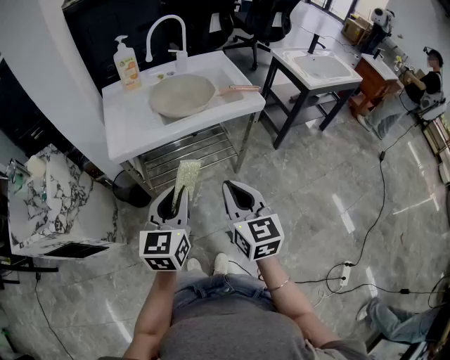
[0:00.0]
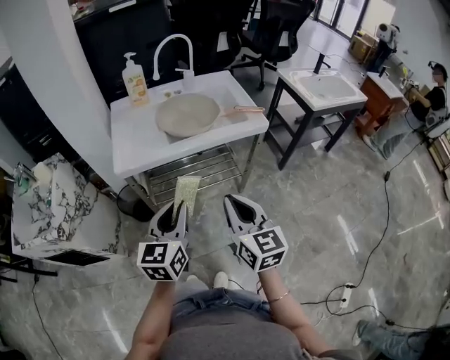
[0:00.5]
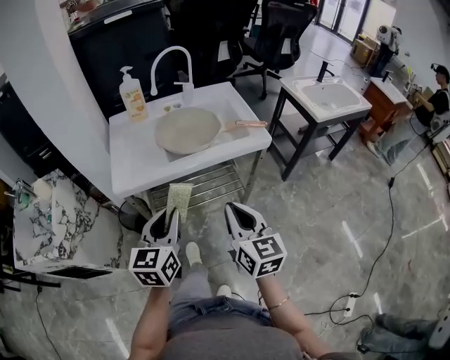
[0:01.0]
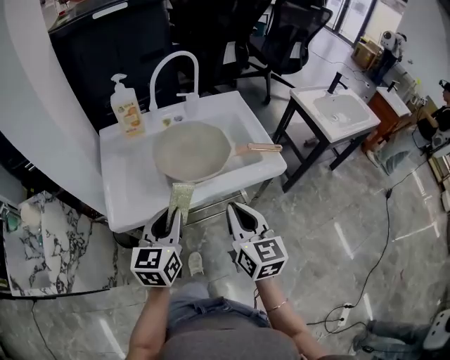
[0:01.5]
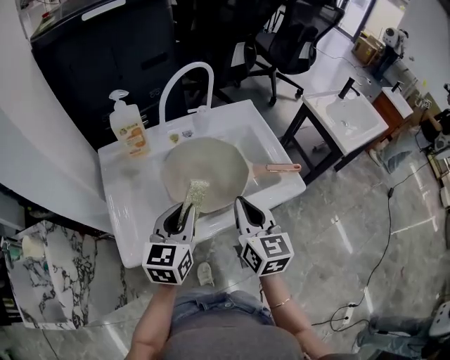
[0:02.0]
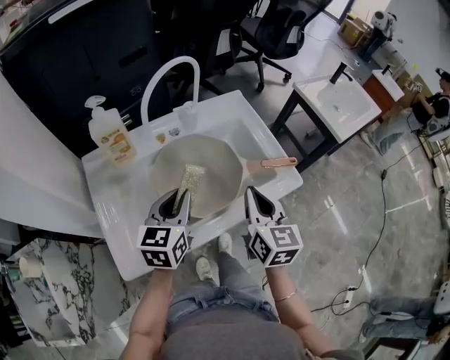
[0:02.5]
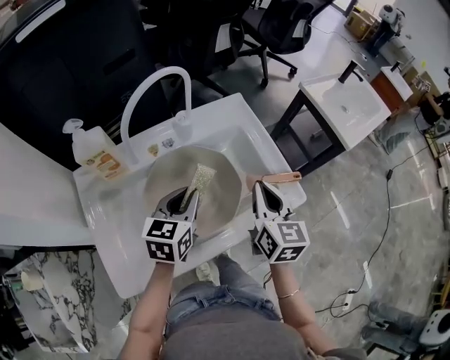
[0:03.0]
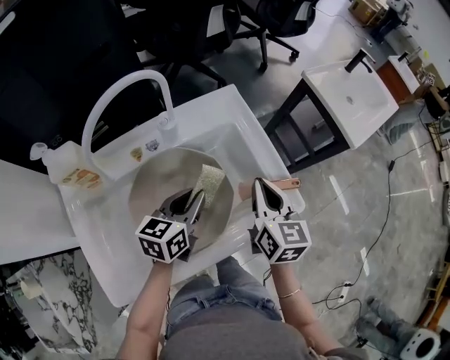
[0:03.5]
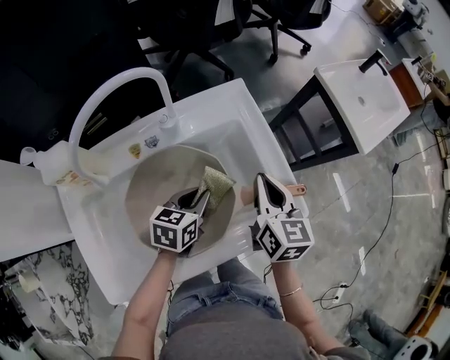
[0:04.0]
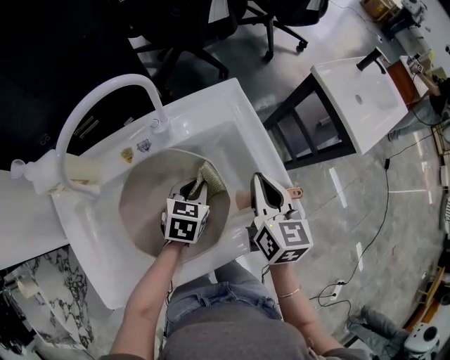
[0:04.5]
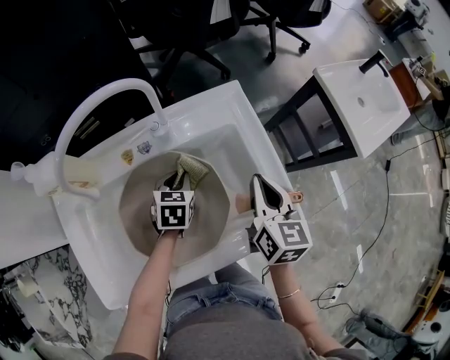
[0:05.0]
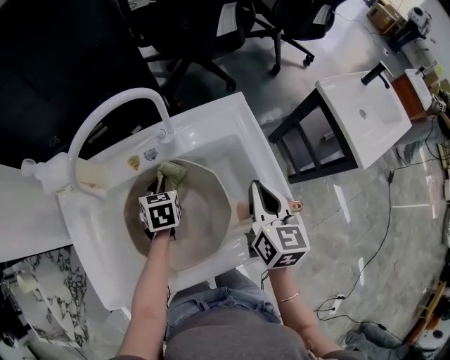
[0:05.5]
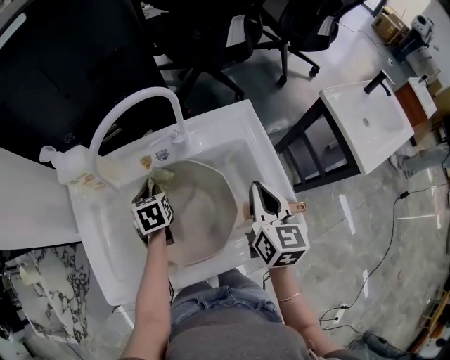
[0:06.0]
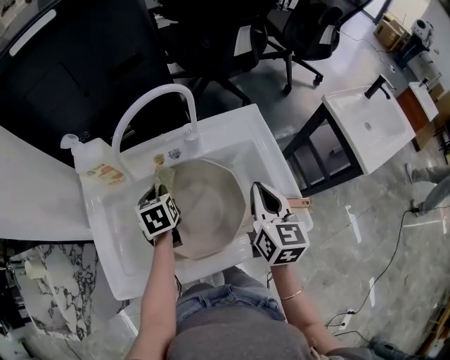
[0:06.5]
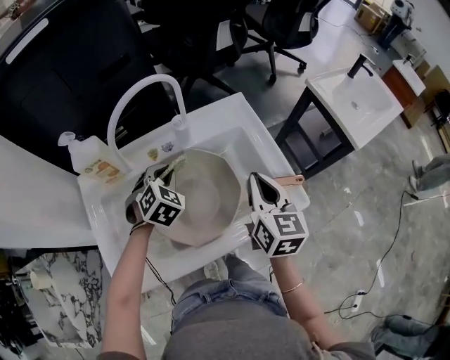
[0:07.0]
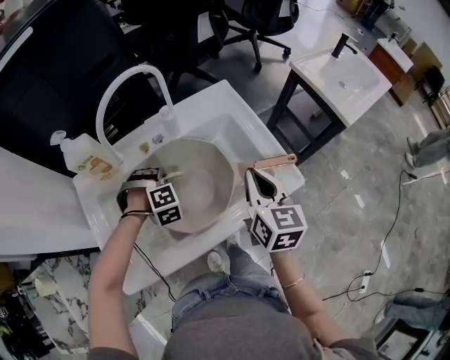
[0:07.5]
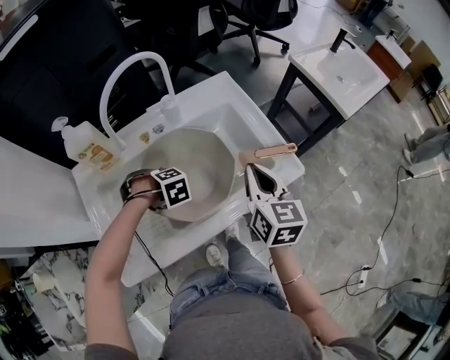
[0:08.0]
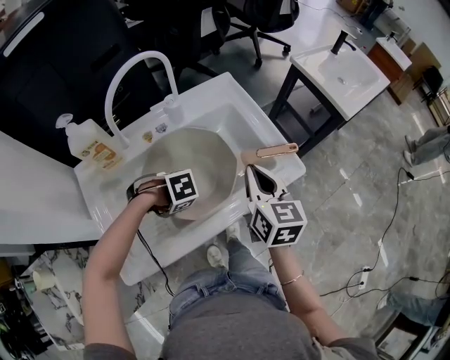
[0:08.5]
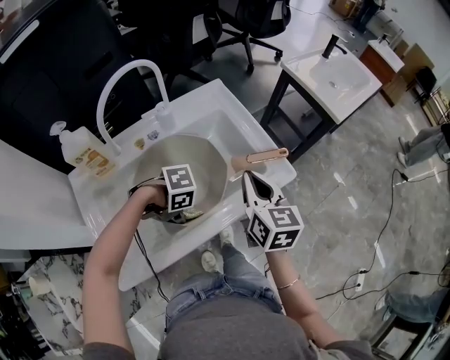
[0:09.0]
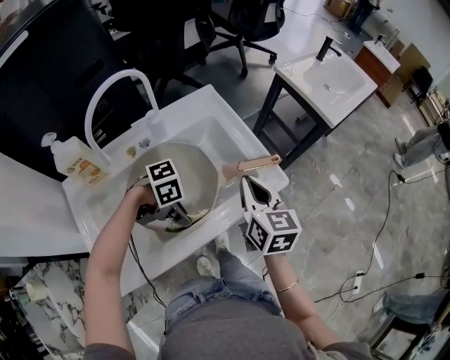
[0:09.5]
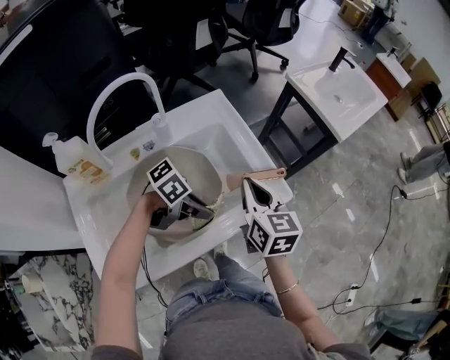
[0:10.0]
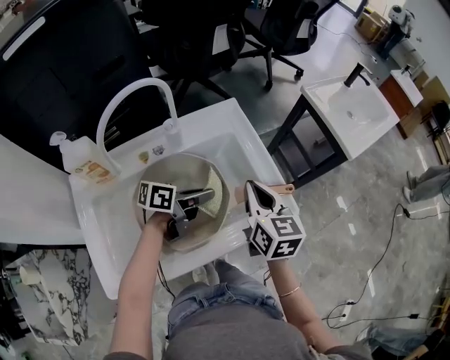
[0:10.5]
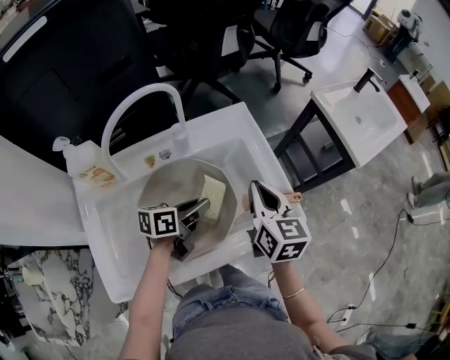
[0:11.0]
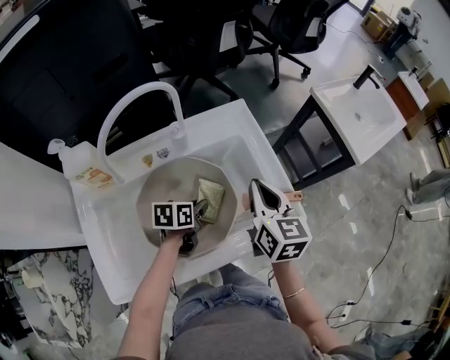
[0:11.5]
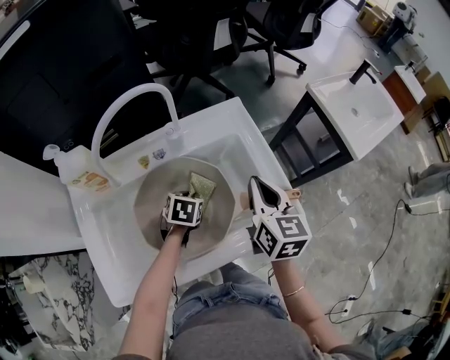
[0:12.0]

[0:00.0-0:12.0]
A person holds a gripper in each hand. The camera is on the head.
0:00.0 to 0:02.0: The grippers both shift forward by roughly 35 cm.
0:02.0 to 0:04.0: The left gripper shifts about 25 cm forward, downward and to the right, and rotates some 30 degrees, while the right gripper is displaced forward and to the right by about 25 cm.
0:04.0 to 0:06.0: The left gripper shifts by roughly 20 cm, and changes its angle by approximately 50 degrees.
0:06.0 to 0:08.0: The left gripper moves approximately 10 cm upward and comes back, and twists approximately 90 degrees clockwise, seen from behind. The right gripper moves about 10 cm.
0:08.0 to 0:10.0: The left gripper changes place by roughly 20 cm, and points its fingers approximately 50 degrees further upward.
0:10.0 to 0:12.0: The right gripper moves approximately 5 cm. The left gripper shifts by some 20 cm, and angles its fingers downward, by roughly 30 degrees.

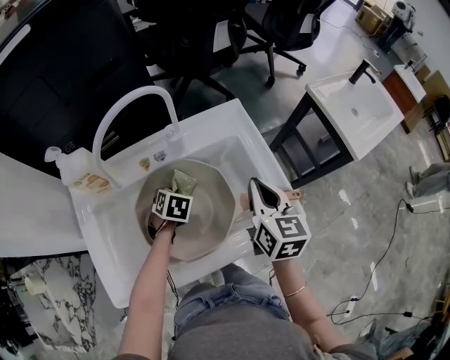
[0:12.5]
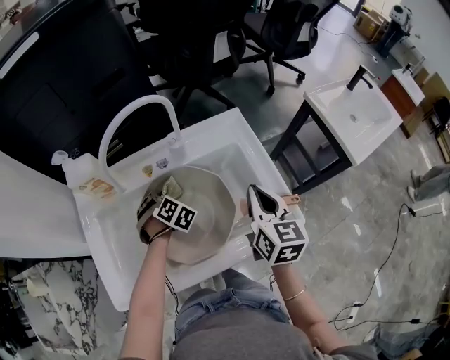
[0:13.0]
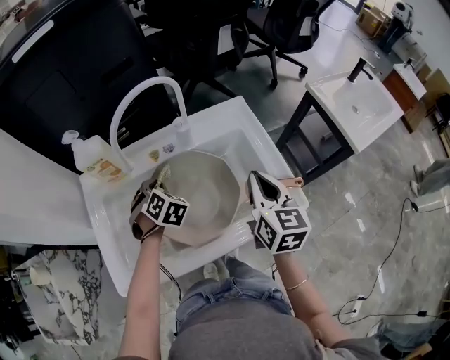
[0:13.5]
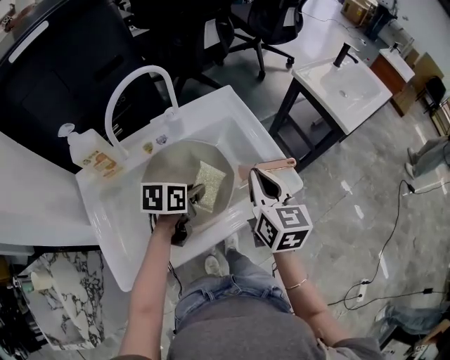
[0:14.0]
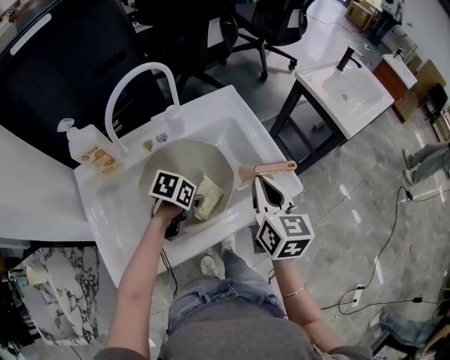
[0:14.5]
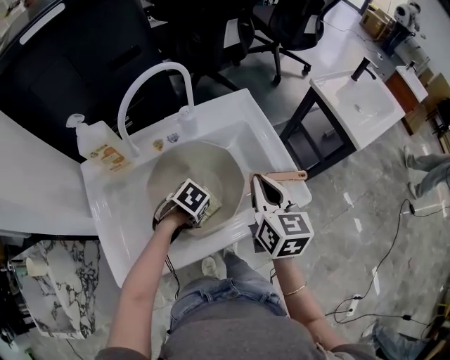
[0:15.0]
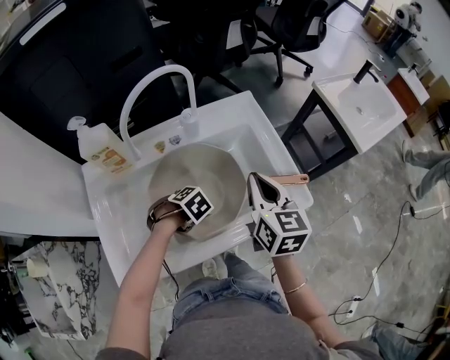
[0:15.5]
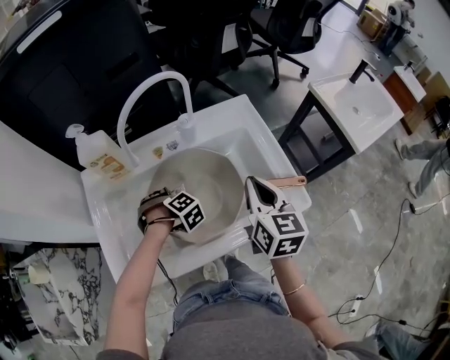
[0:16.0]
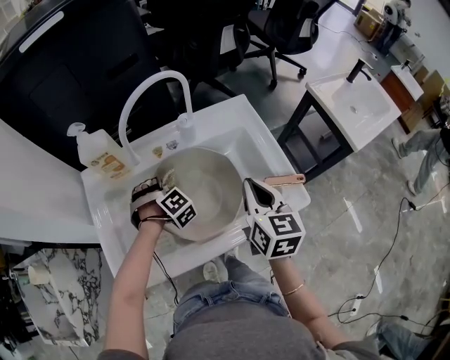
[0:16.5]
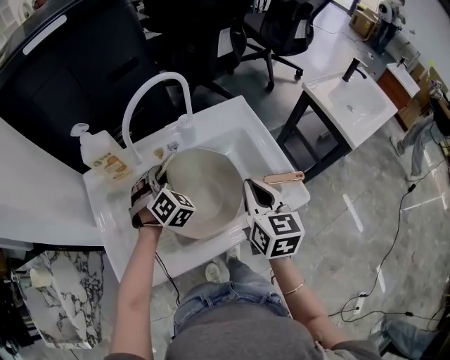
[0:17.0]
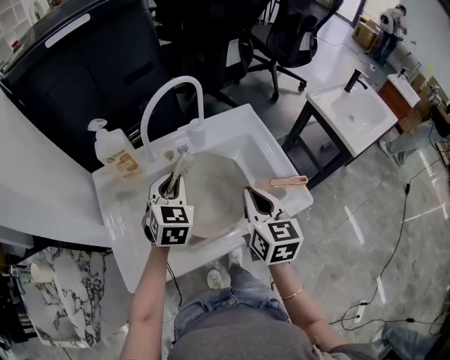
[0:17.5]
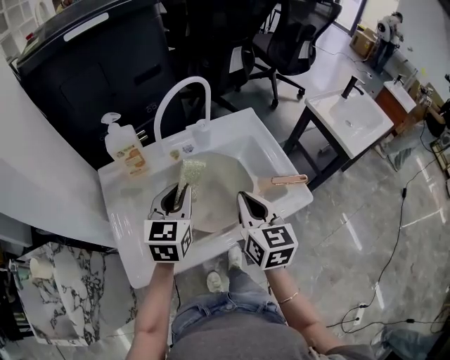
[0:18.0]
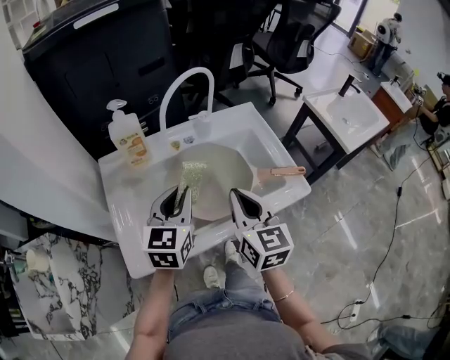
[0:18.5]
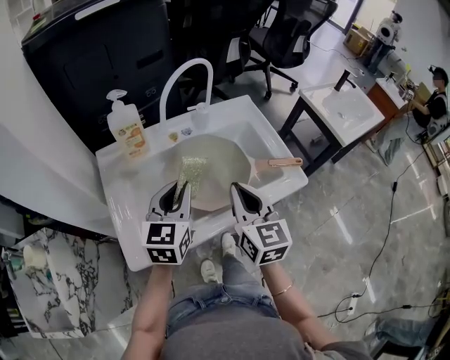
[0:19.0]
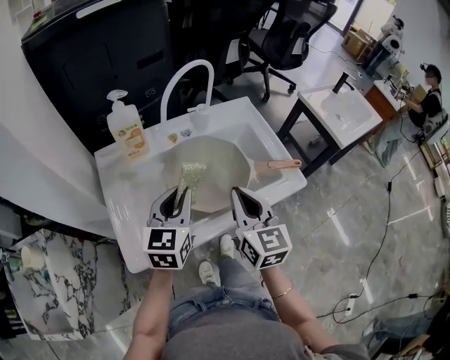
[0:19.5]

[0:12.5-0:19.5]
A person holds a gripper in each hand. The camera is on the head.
0:12.5 to 0:14.5: The right gripper ends up some 10 cm from where it was. The left gripper changes place by some 15 cm, and turns by roughly 40 degrees.
0:14.5 to 0:16.0: The right gripper moves about 5 cm. Meanwhile the left gripper moves about 15 cm, and turns by approximately 70 degrees.
0:16.0 to 0:17.5: The right gripper ends up about 5 cm from where it was, while the left gripper goes approximately 20 cm upward, and tilts its fingers roughly 40 degrees upward.
0:17.5 to 0:19.5: The left gripper goes roughly 15 cm backward, and rotates some 30 degrees; the right gripper is displaced backward and to the left by approximately 10 cm.

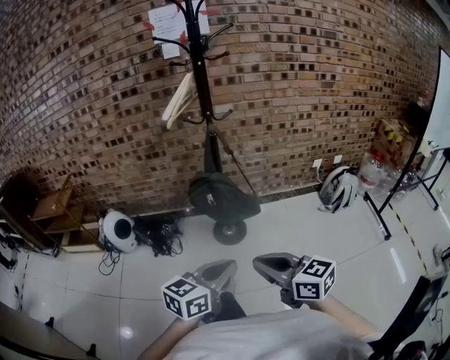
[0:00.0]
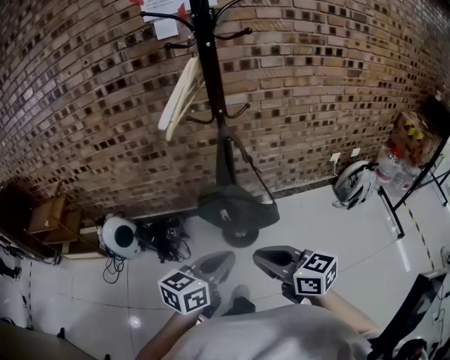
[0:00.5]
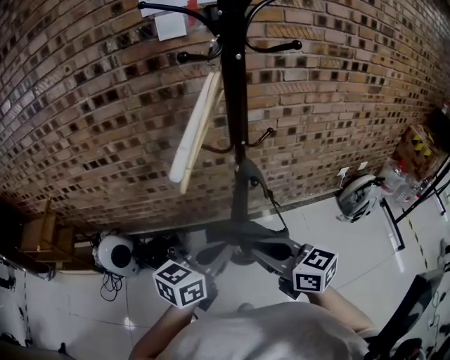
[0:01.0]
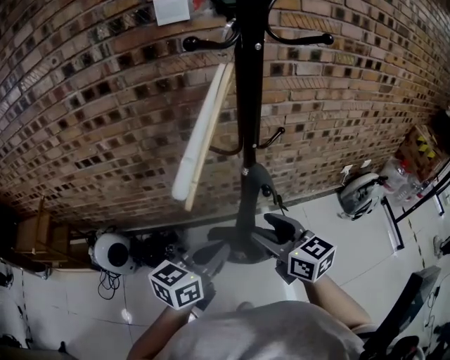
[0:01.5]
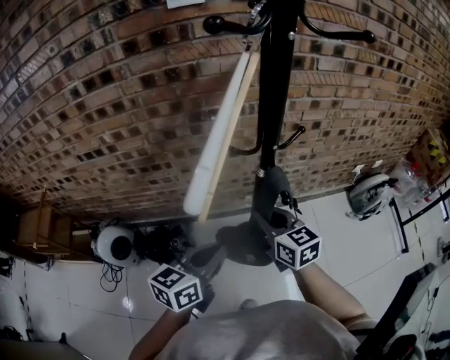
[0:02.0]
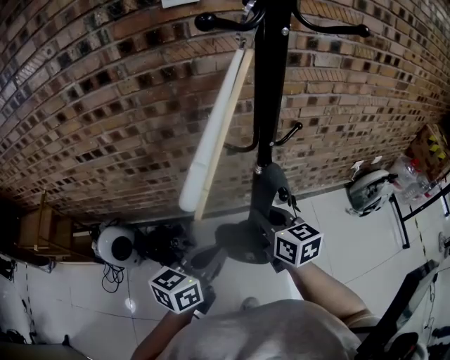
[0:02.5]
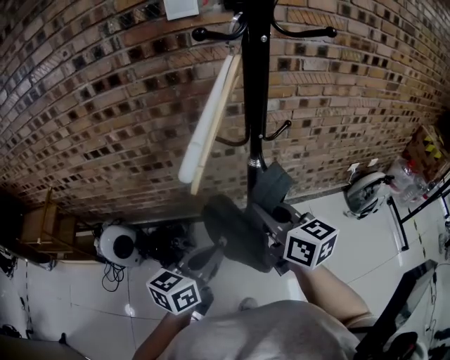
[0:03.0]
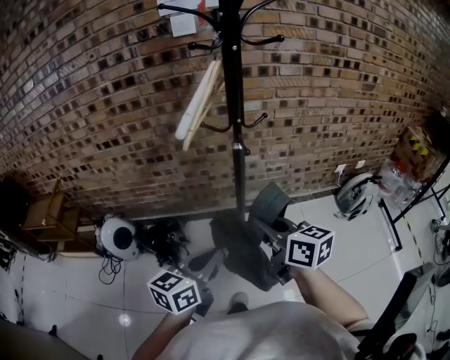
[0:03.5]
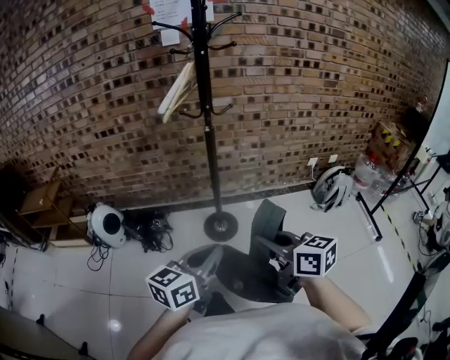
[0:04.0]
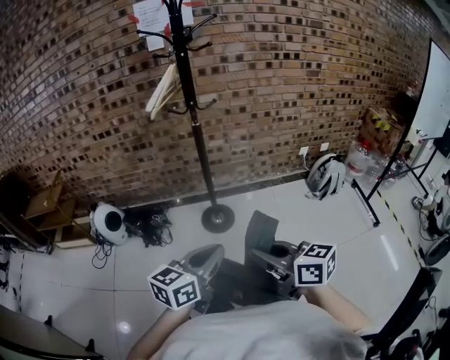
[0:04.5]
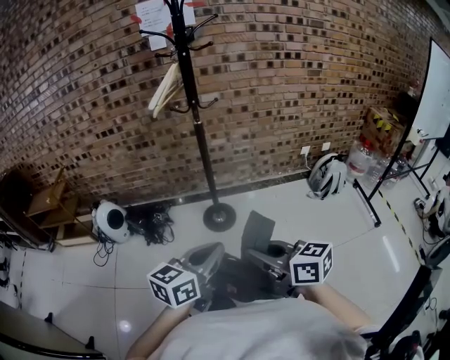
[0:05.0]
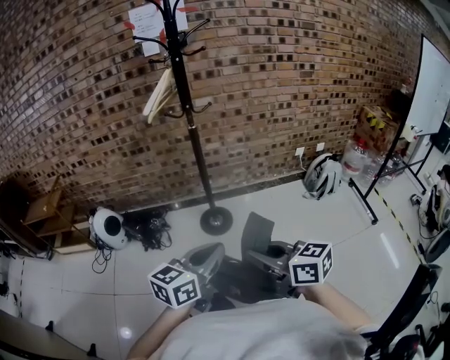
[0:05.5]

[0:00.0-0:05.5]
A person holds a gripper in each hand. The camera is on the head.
0:00.0 to 0:02.0: The two grippers travel together, forward, some 50 cm. The right gripper changes its angle by about 20 degrees, and opens and closes again.
0:02.0 to 0:03.5: The right gripper travels backward and upward by roughly 25 cm. The left gripper heads backward, covering roughly 20 cm.
0:03.5 to 0:05.5: The left gripper travels backward and to the right by roughly 30 cm; the right gripper is displaced backward by some 40 cm.

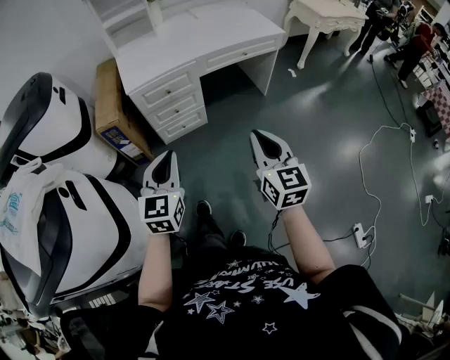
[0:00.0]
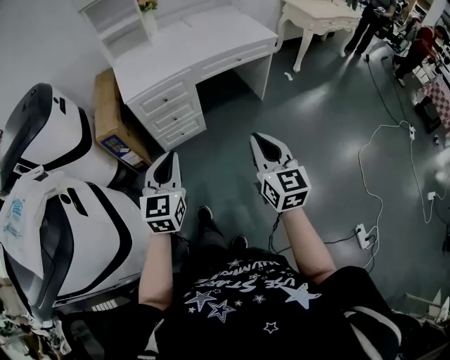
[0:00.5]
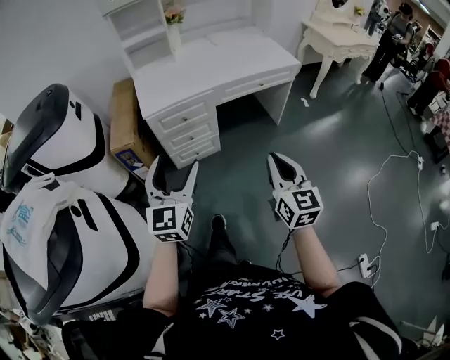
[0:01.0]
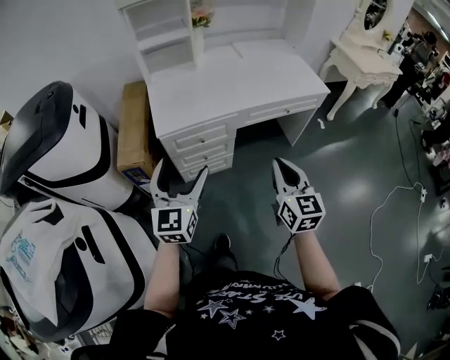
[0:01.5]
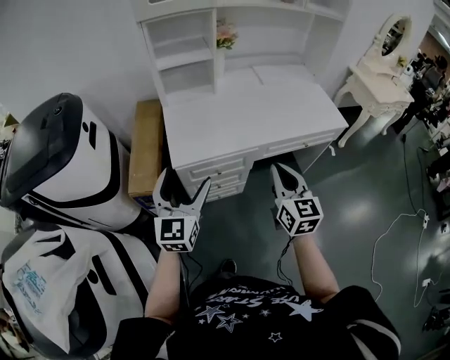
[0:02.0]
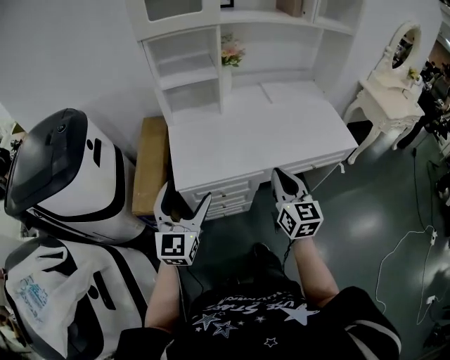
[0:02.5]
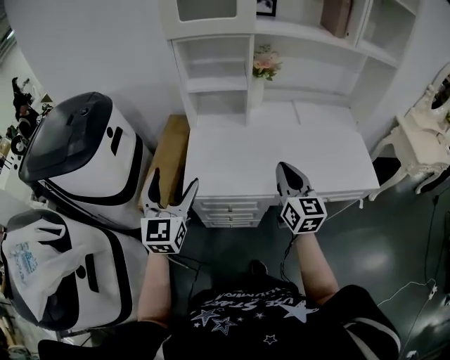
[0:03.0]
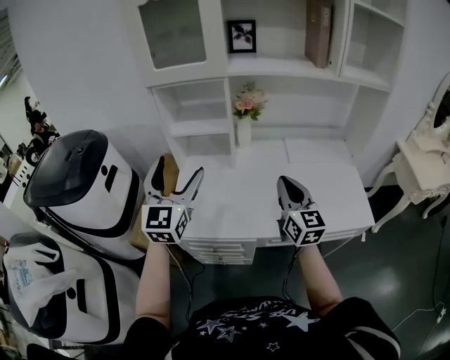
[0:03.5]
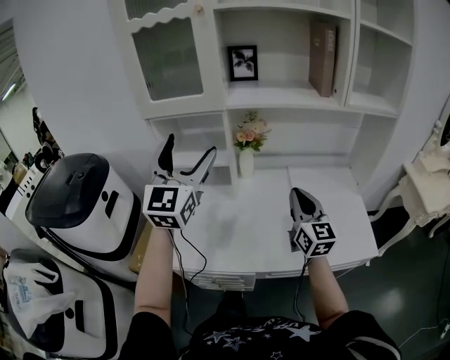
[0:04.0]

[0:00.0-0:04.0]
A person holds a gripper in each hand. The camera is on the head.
0:00.0 to 0:02.0: The right gripper goes some 35 cm forward. The left gripper shifts about 35 cm forward and to the left, and opens.
0:02.0 to 0:04.0: The right gripper is displaced forward and to the right by roughly 40 cm, and changes its angle by some 20 degrees, while the left gripper heads forward and upward, covering roughly 40 cm, and turns by about 30 degrees.
